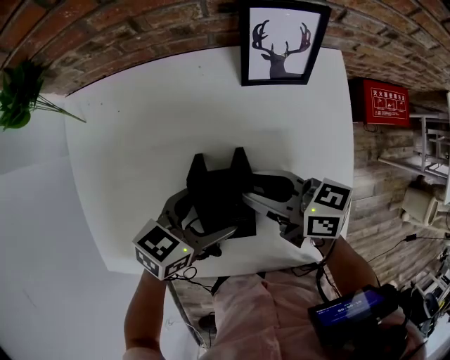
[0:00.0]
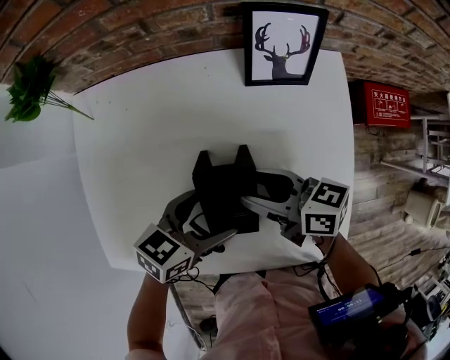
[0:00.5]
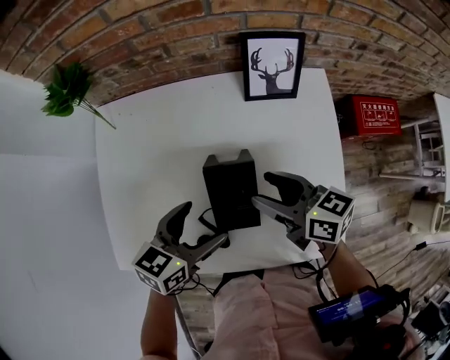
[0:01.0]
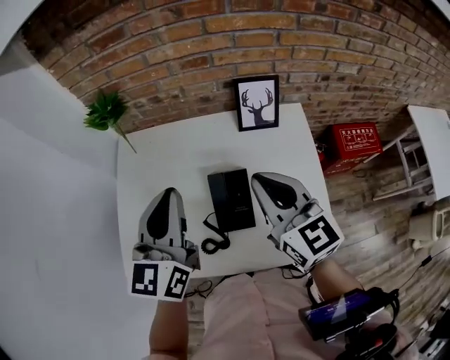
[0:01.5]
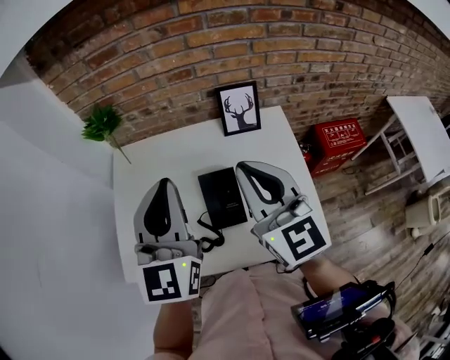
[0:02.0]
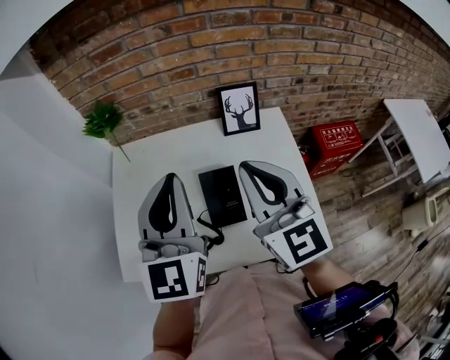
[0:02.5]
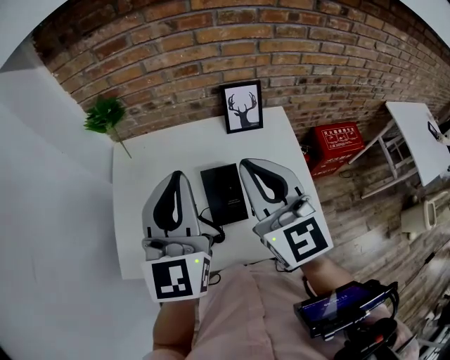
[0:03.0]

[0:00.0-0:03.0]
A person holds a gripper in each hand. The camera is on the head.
0:00.0 to 0:01.5: Both grippers travel together upward, approximately 25 cm. The right gripper rotates approximately 50 degrees, and closes. The left gripper angles its fingers upward, by about 30 degrees, and closes up.
0:01.5 to 0:03.0: Both grippers travel together upward, about 10 cm.

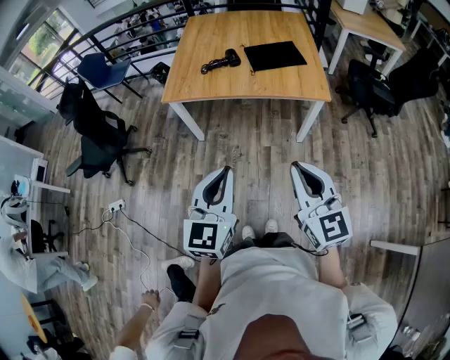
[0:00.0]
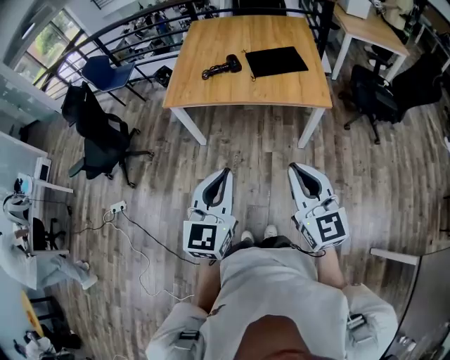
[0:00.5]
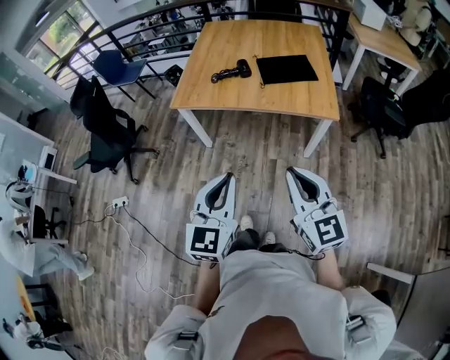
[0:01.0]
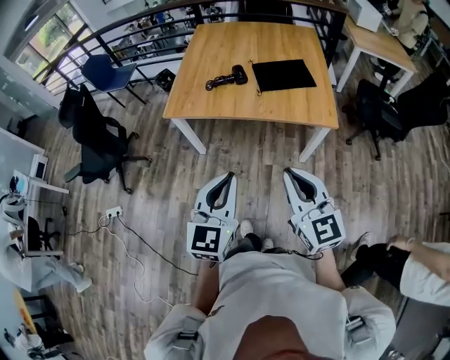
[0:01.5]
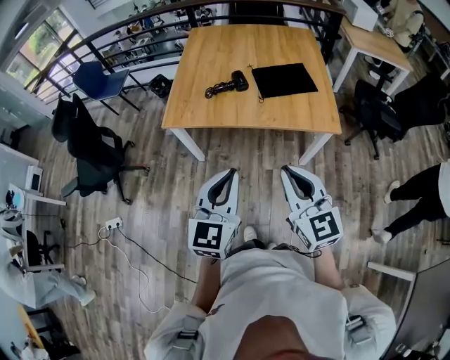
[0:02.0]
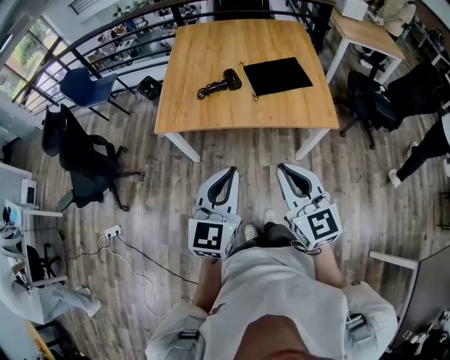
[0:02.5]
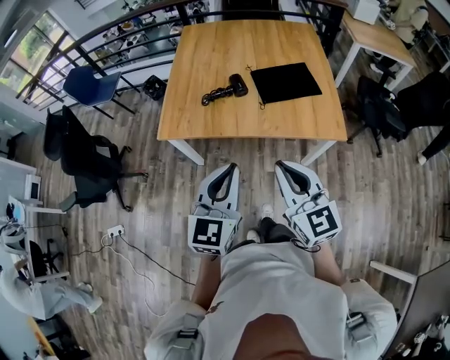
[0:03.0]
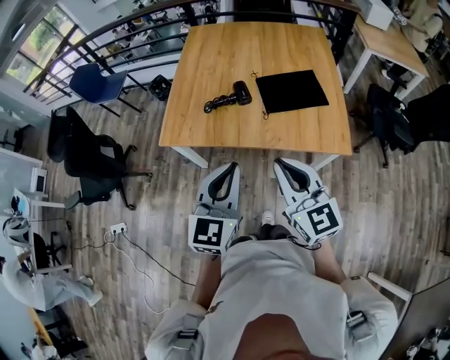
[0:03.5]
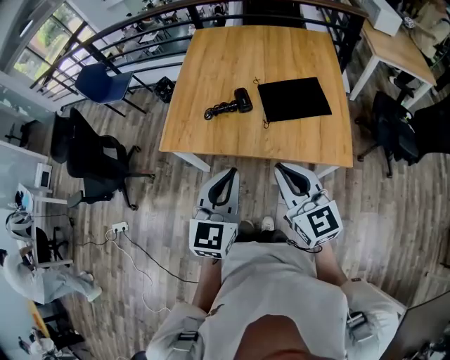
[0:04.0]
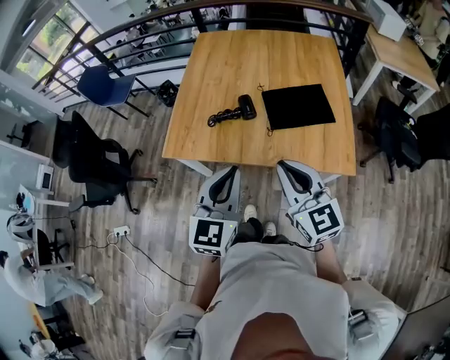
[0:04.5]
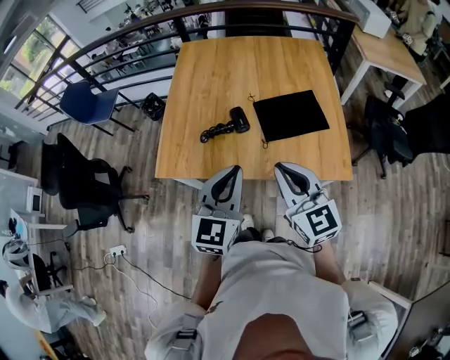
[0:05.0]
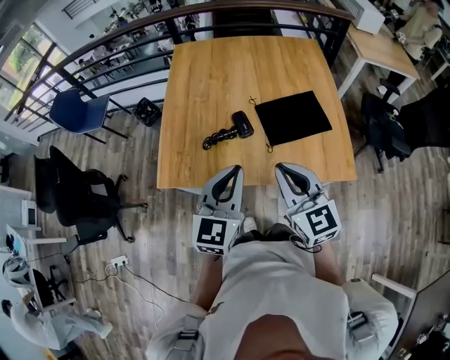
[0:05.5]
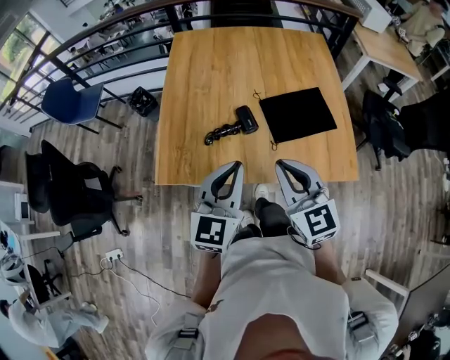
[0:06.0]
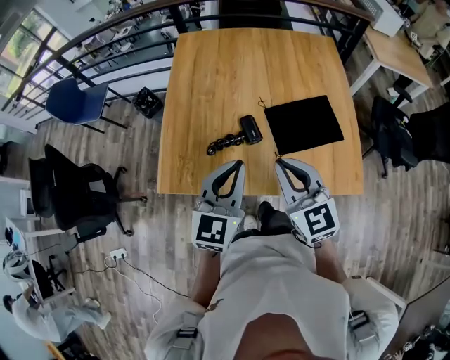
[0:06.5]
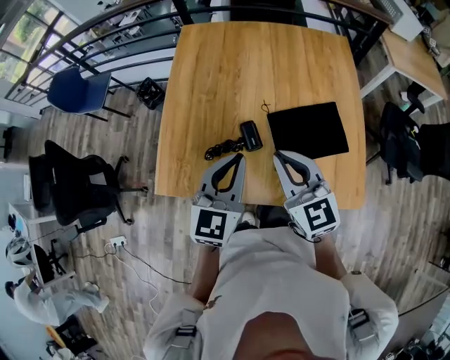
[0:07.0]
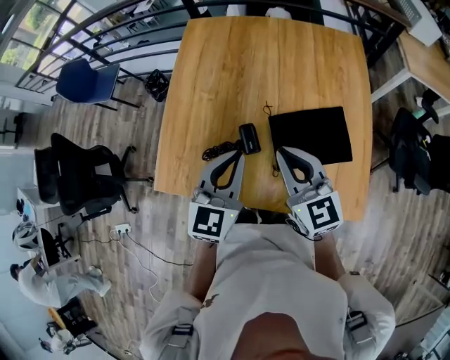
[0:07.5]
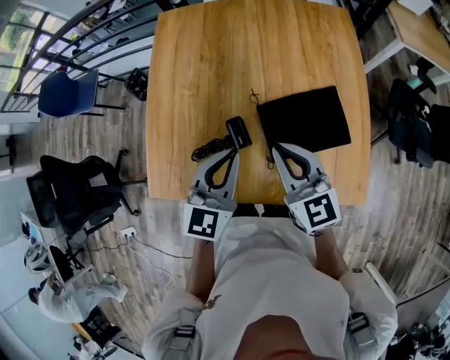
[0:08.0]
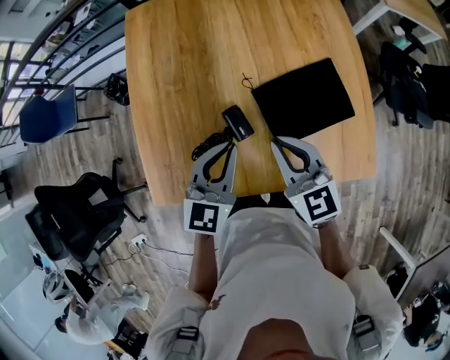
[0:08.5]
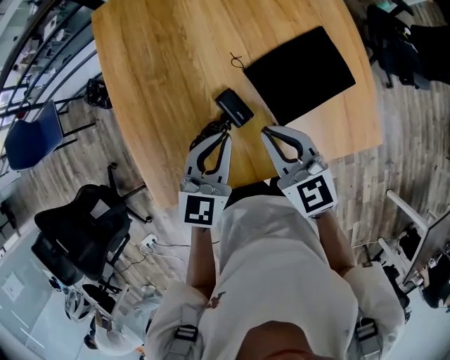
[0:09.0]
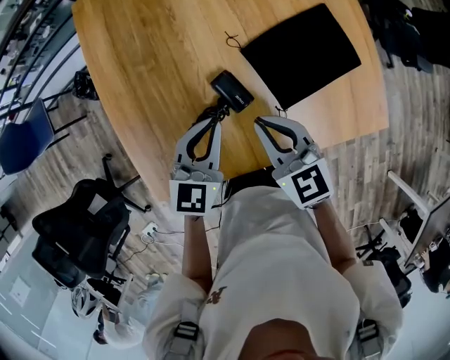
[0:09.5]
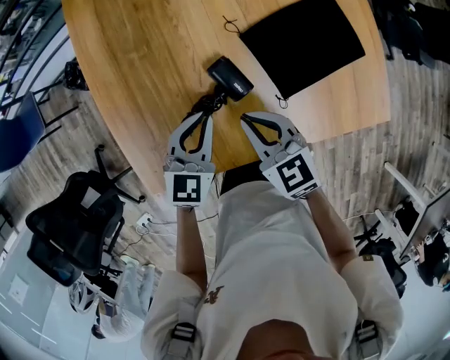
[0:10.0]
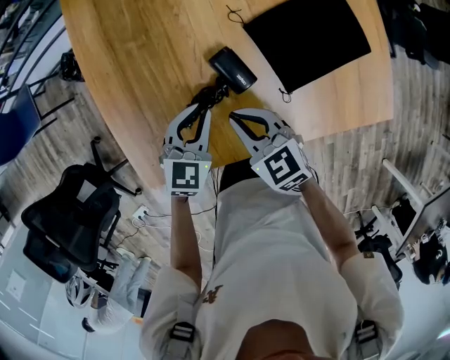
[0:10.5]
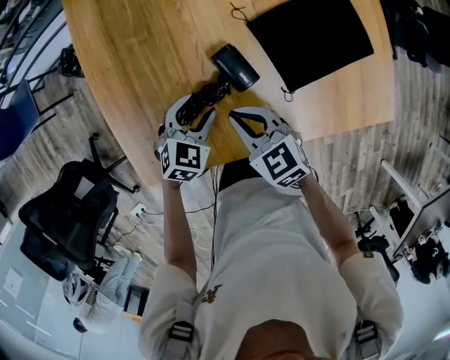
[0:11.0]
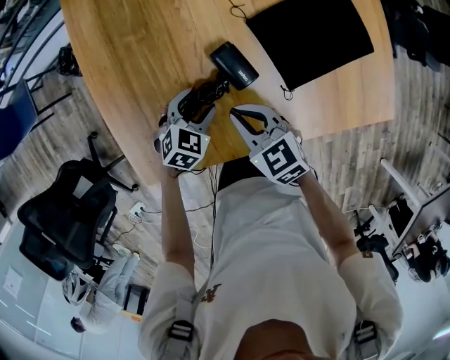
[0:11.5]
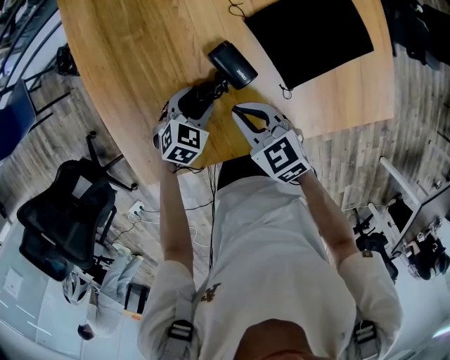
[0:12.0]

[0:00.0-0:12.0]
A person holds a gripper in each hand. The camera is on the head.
0:00.0 to 0:02.0: Both grippers move forward, roughly 15 cm.
0:02.0 to 0:04.0: Both grippers travel together forward, some 20 cm.
0:04.0 to 0:06.0: Both grippers move forward and to the left, some 20 cm.
0:06.0 to 0:08.0: The grippers both shift forward and to the right by some 20 cm.
0:08.0 to 0:10.0: Both grippers travel together downward and to the left, roughly 20 cm. The right gripper swivels approximately 20 degrees, while the left gripper turns by approximately 20 degrees.
0:10.0 to 0:12.0: The left gripper travels downward by approximately 15 cm, rotates approximately 30 degrees, and opens, while the right gripper travels downward by approximately 5 cm.

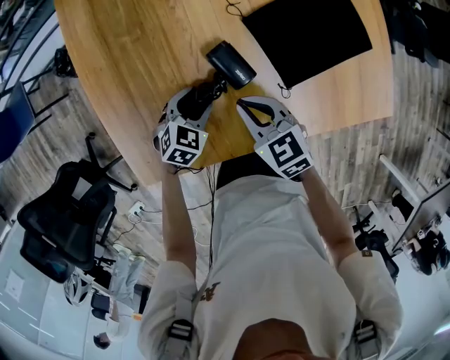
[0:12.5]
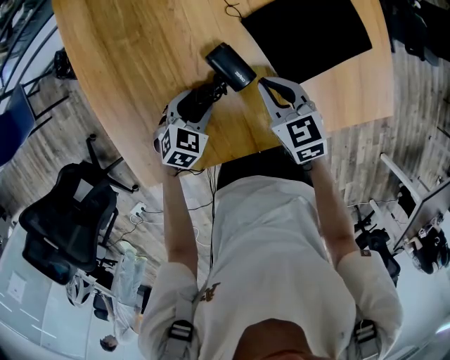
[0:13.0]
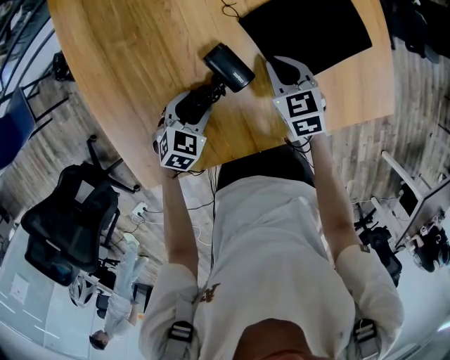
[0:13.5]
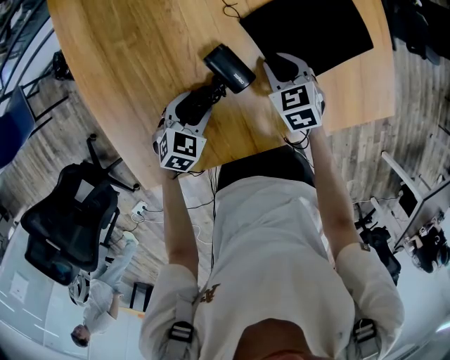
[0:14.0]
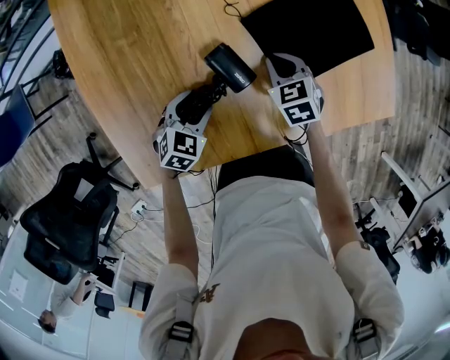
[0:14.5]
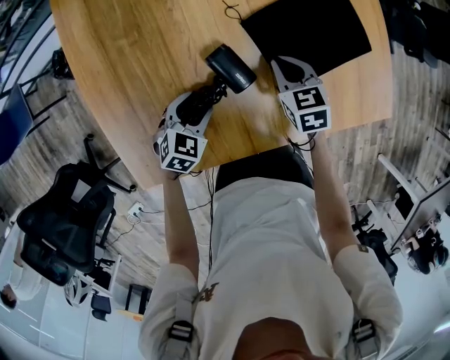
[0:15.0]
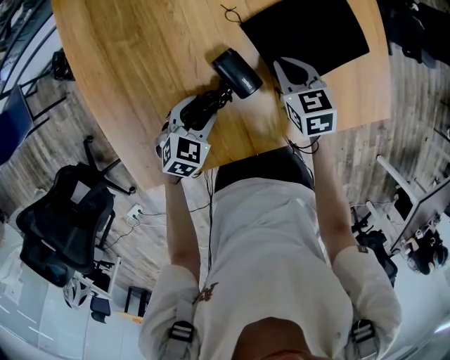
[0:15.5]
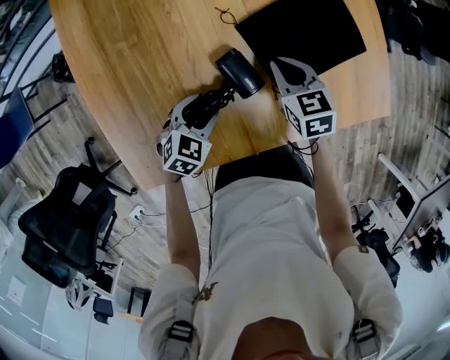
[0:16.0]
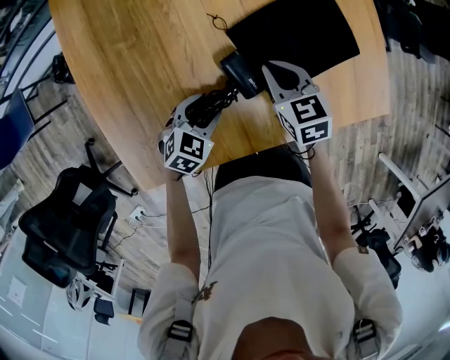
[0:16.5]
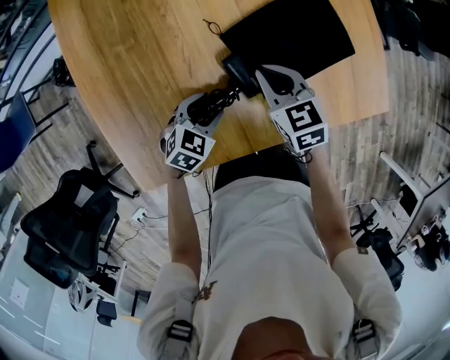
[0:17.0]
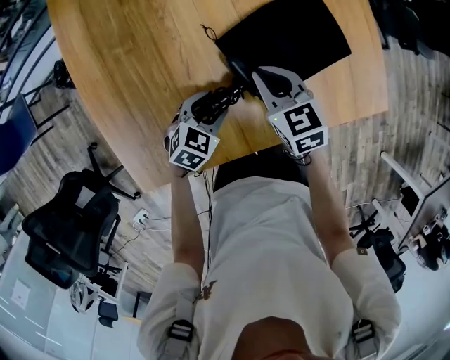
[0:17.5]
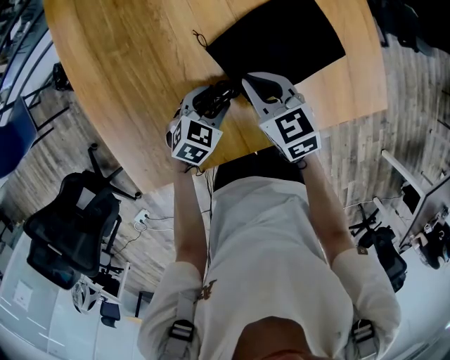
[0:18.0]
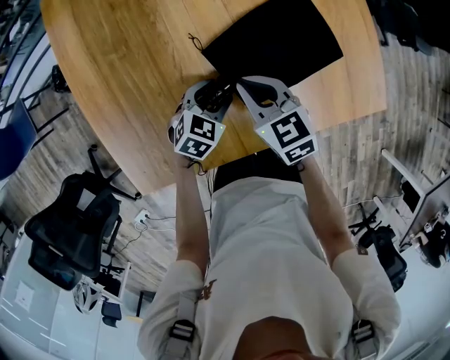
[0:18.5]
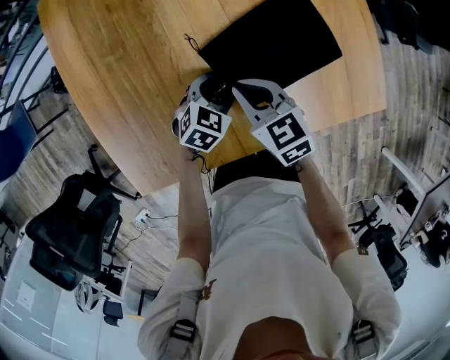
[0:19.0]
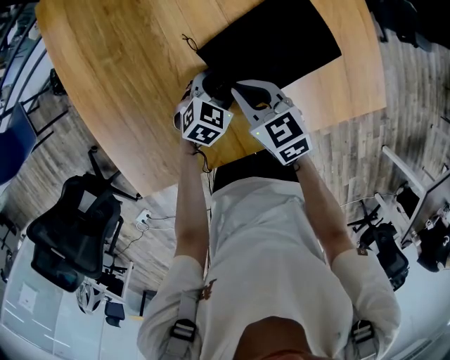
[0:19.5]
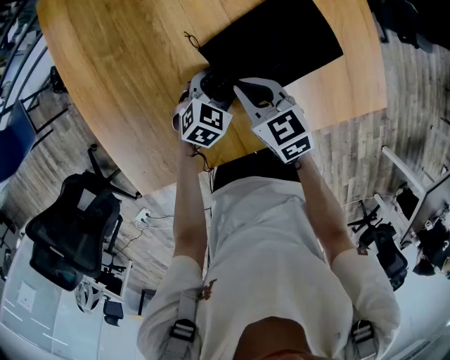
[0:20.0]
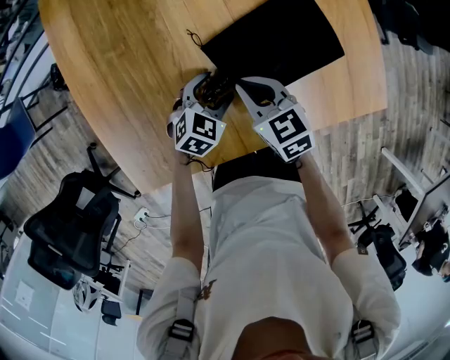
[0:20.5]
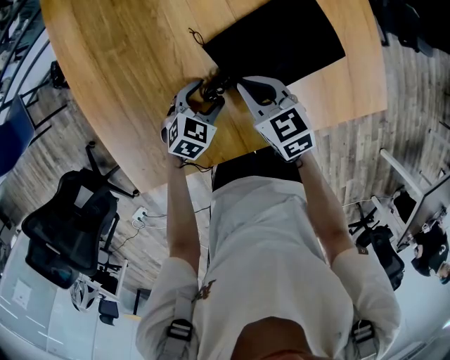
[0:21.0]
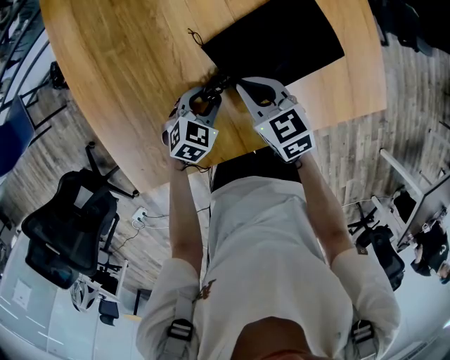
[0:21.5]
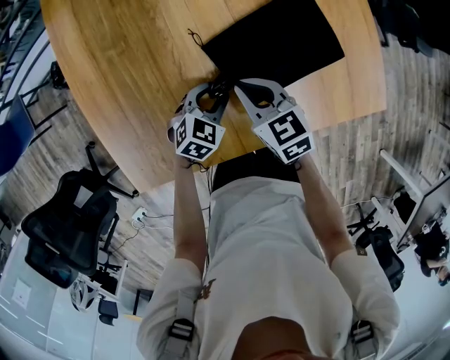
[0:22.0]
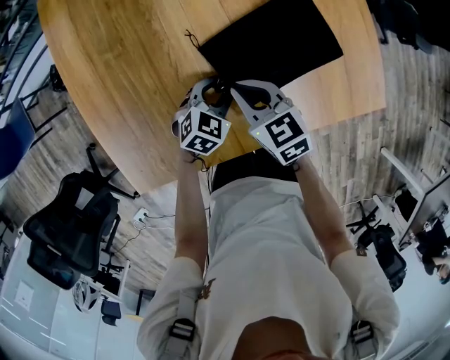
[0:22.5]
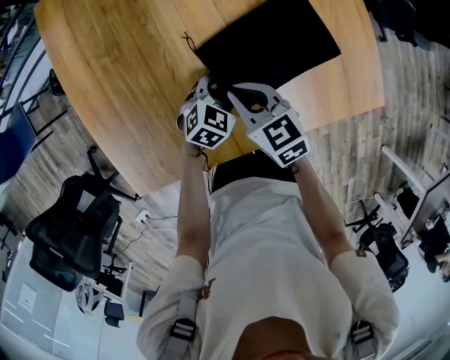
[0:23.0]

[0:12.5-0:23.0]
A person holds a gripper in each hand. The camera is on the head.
0:12.5 to 0:14.5: The right gripper heads forward, downward and to the right, covering roughly 15 cm, and rotates some 20 degrees.
0:14.5 to 0:16.5: The right gripper goes some 10 cm upward.
0:16.5 to 0:19.0: The left gripper goes approximately 10 cm forward and to the right. The right gripper ends up approximately 5 cm from where it was.
0:19.0 to 0:21.0: The left gripper moves about 5 cm.
0:21.0 to 0:23.0: The left gripper travels to the right by approximately 10 cm, and closes its fingers.

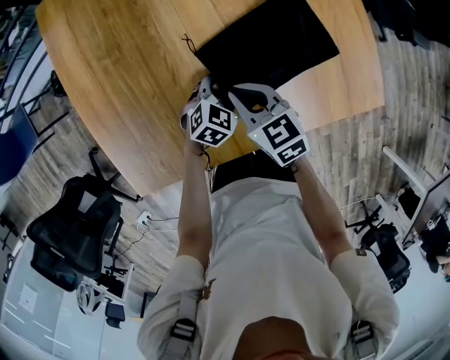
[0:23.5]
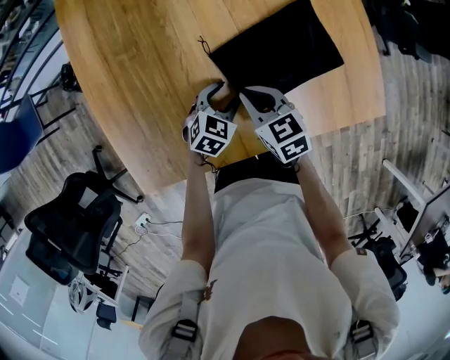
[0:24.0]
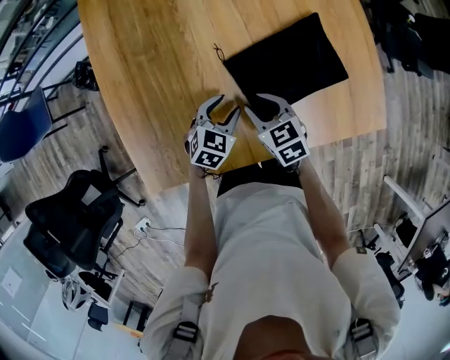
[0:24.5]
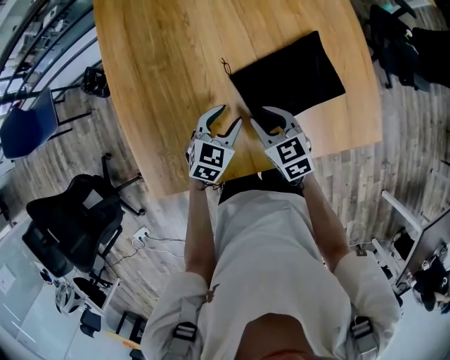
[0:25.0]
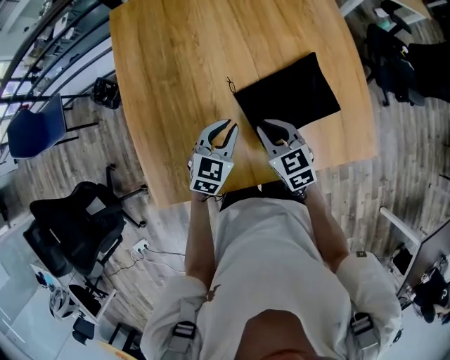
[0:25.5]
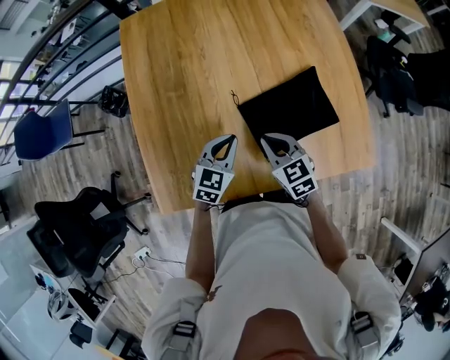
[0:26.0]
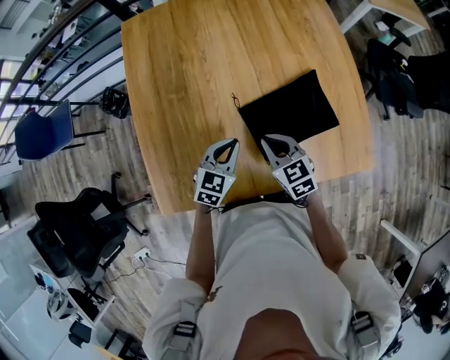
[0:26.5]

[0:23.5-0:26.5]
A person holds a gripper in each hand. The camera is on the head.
0:23.5 to 0:25.0: The right gripper opens its fingers. Meanwhile the left gripper shifts roughly 15 cm upward and to the left.
0:25.0 to 0:26.5: The right gripper changes place by approximately 5 cm, and closes up. The left gripper is displaced upward by approximately 5 cm, and closes its fingers.
